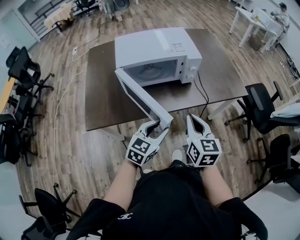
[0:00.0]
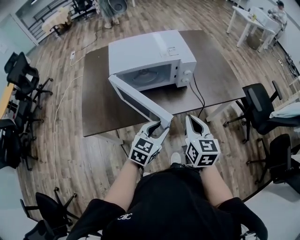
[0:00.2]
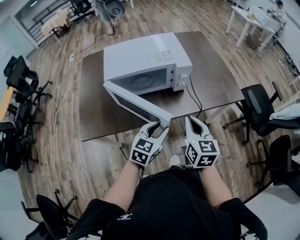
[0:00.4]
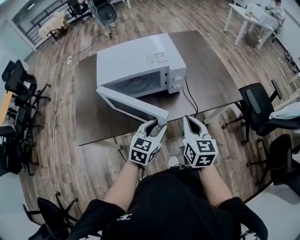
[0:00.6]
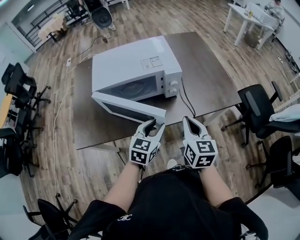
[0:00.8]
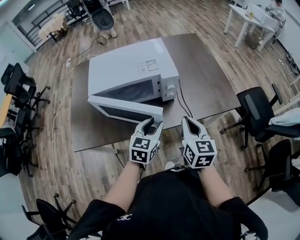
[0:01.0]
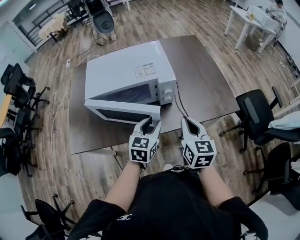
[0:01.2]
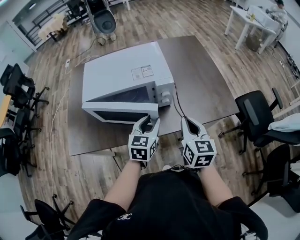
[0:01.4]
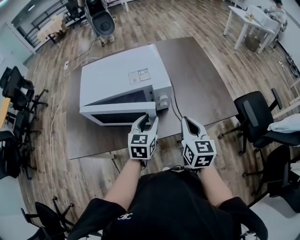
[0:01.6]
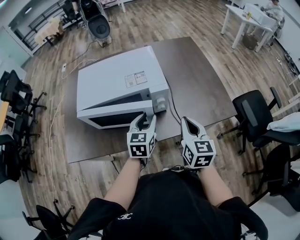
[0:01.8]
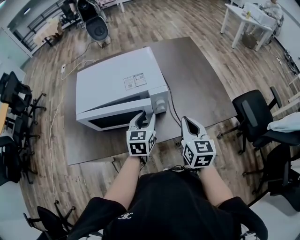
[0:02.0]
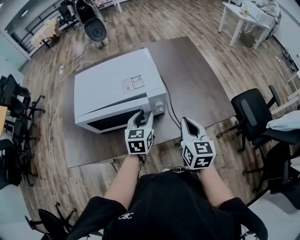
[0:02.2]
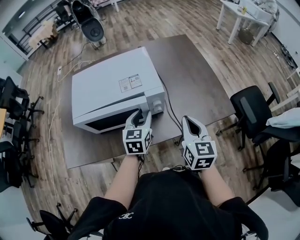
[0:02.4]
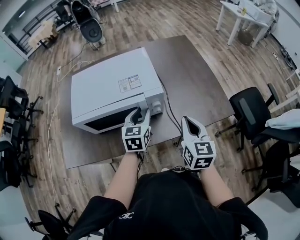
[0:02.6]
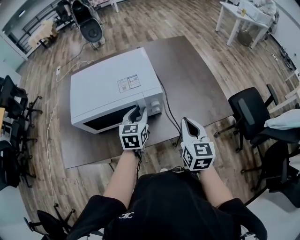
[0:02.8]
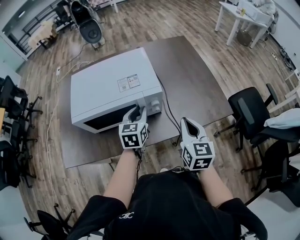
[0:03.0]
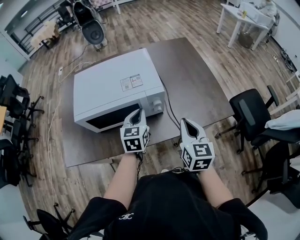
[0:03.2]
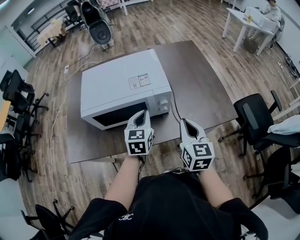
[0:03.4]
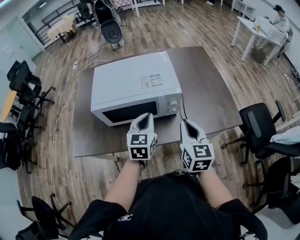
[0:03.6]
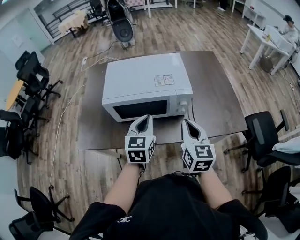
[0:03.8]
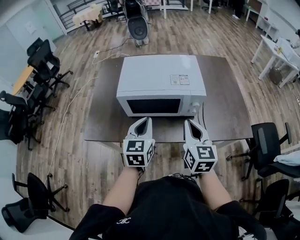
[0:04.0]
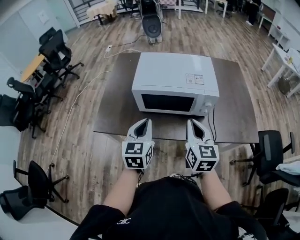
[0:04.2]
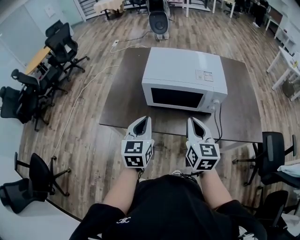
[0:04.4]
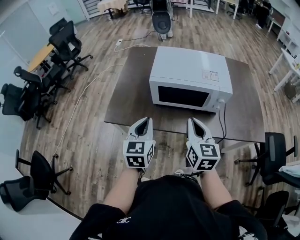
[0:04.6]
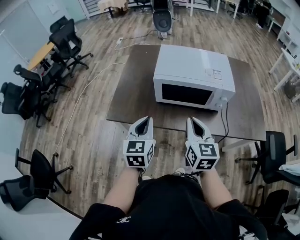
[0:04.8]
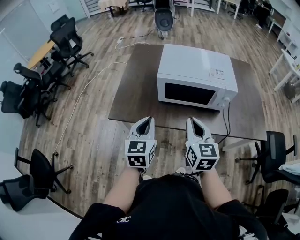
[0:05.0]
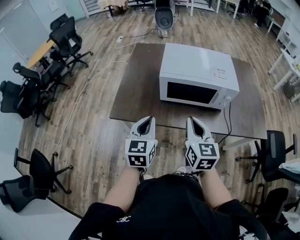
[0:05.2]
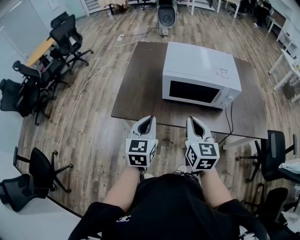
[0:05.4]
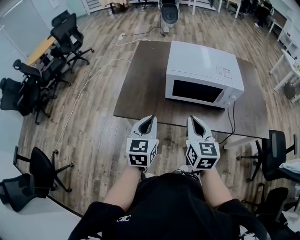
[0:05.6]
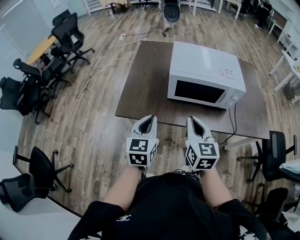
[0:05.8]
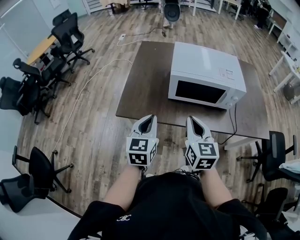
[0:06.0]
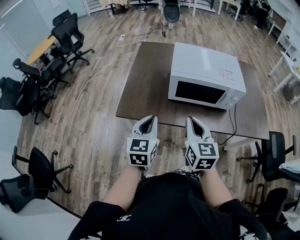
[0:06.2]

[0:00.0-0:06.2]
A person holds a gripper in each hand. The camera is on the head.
0:00.0 to 0:01.6: The left gripper moves forward, roughly 25 cm, and swivels approximately 20 degrees. The right gripper travels forward and to the right by about 25 cm.
0:01.6 to 0:03.2: The left gripper heads forward, covering roughly 5 cm, and closes.
0:03.2 to 0:04.6: The right gripper is displaced to the left by about 25 cm, and turns by about 20 degrees. Meanwhile the left gripper is displaced to the left and backward by approximately 35 cm, and changes its angle by approximately 20 degrees.
0:04.6 to 0:06.2: Both grippers travel together to the left, approximately 10 cm.

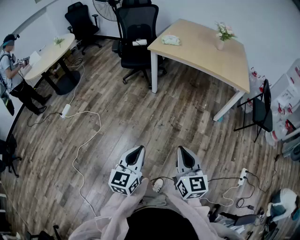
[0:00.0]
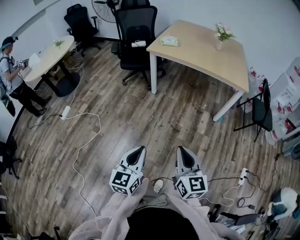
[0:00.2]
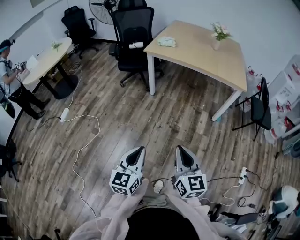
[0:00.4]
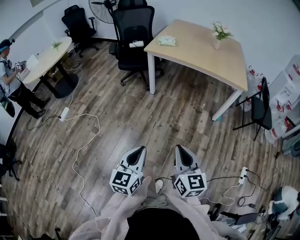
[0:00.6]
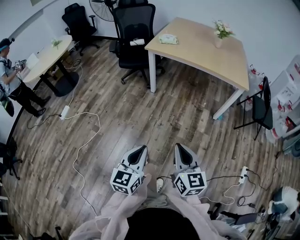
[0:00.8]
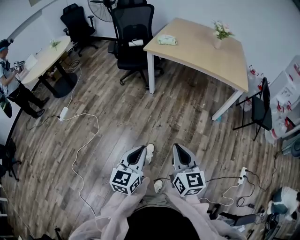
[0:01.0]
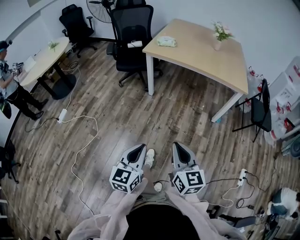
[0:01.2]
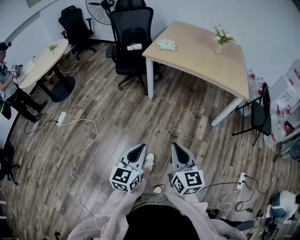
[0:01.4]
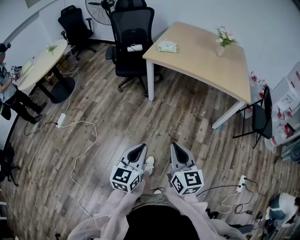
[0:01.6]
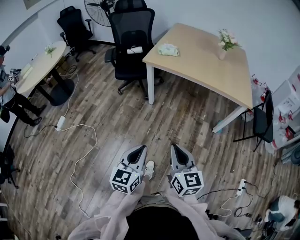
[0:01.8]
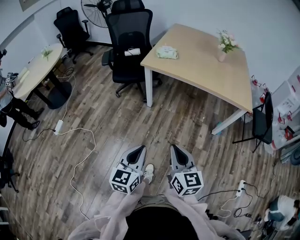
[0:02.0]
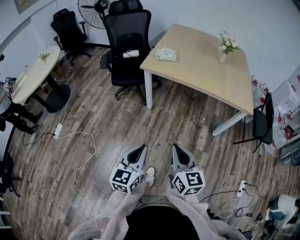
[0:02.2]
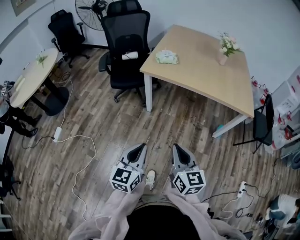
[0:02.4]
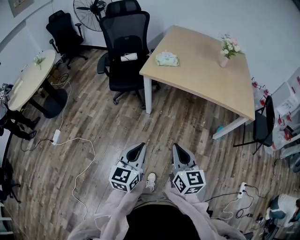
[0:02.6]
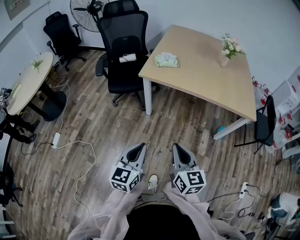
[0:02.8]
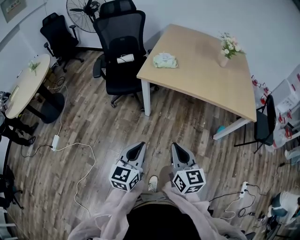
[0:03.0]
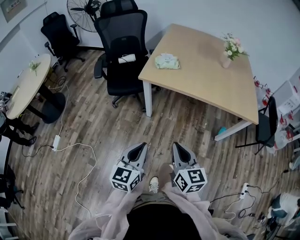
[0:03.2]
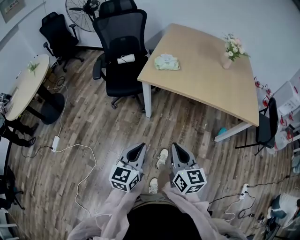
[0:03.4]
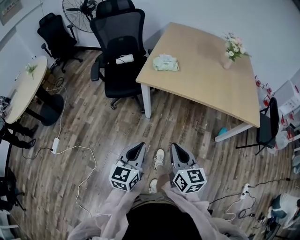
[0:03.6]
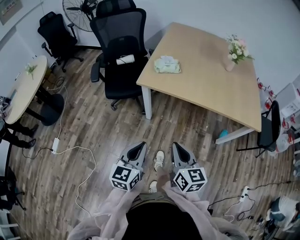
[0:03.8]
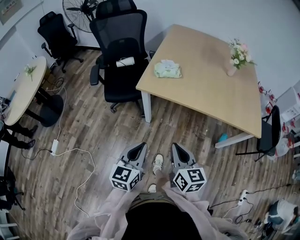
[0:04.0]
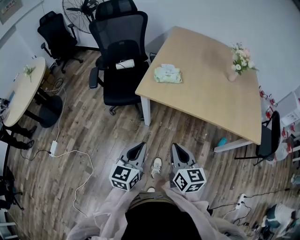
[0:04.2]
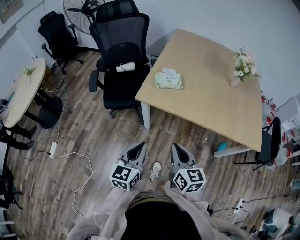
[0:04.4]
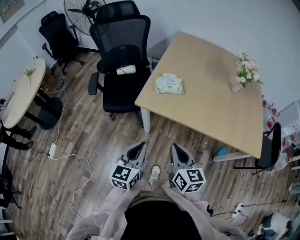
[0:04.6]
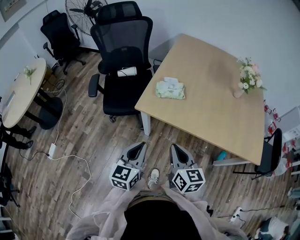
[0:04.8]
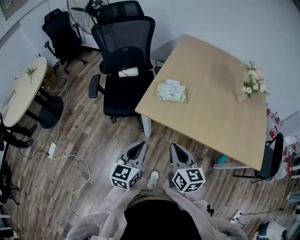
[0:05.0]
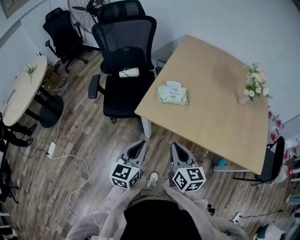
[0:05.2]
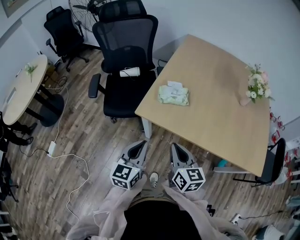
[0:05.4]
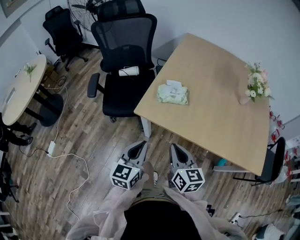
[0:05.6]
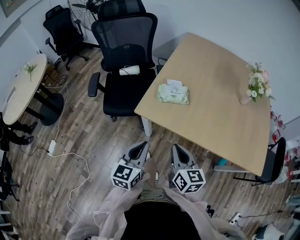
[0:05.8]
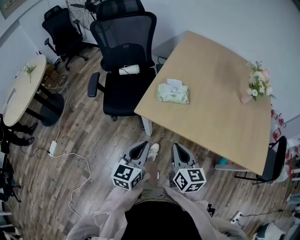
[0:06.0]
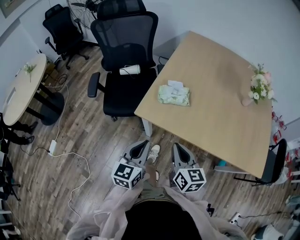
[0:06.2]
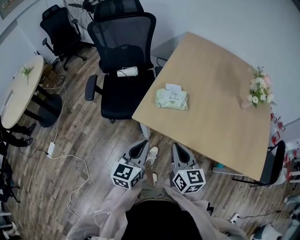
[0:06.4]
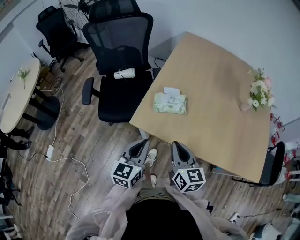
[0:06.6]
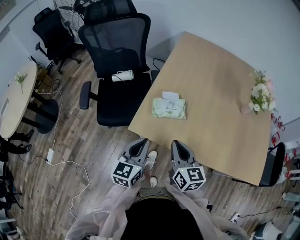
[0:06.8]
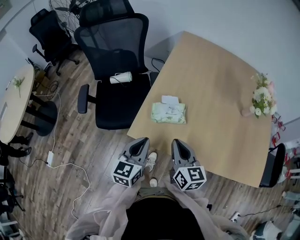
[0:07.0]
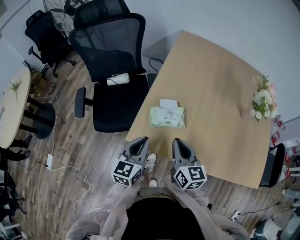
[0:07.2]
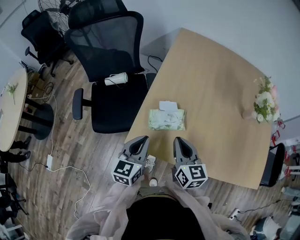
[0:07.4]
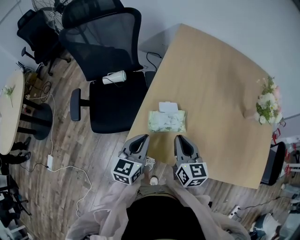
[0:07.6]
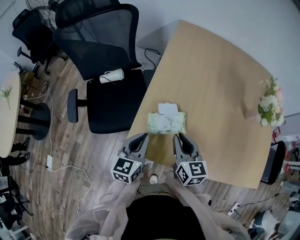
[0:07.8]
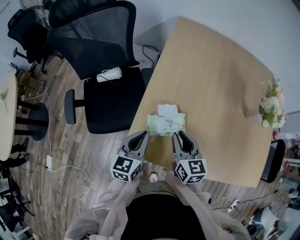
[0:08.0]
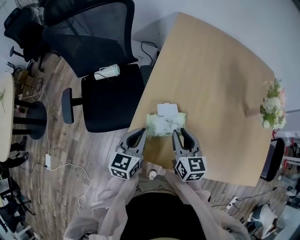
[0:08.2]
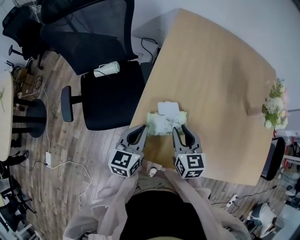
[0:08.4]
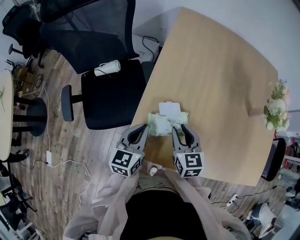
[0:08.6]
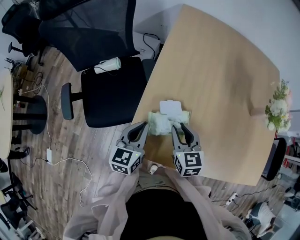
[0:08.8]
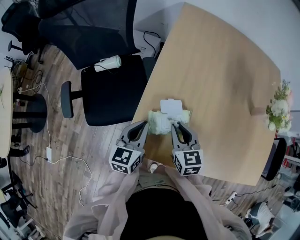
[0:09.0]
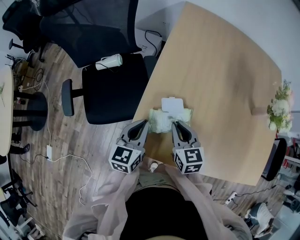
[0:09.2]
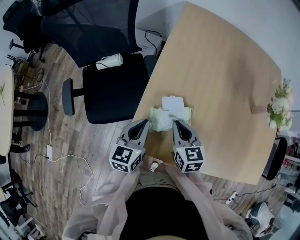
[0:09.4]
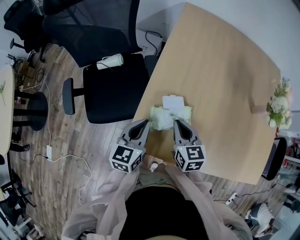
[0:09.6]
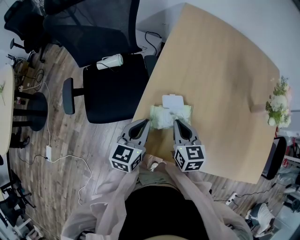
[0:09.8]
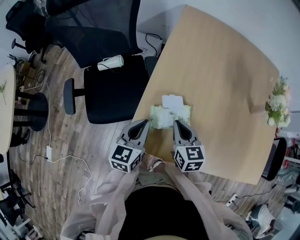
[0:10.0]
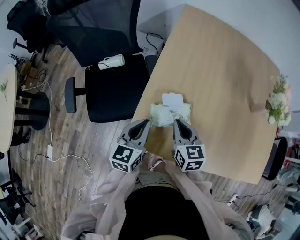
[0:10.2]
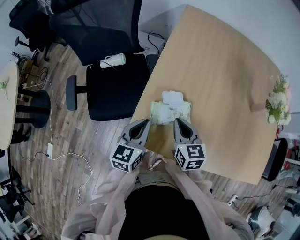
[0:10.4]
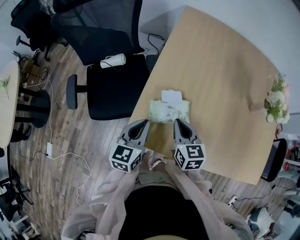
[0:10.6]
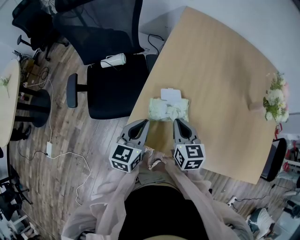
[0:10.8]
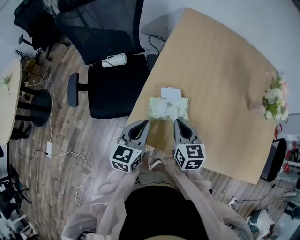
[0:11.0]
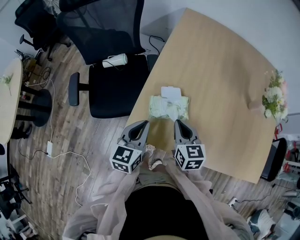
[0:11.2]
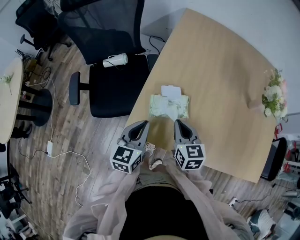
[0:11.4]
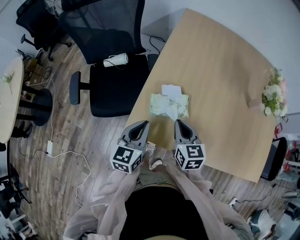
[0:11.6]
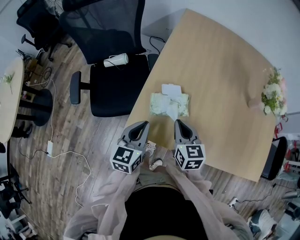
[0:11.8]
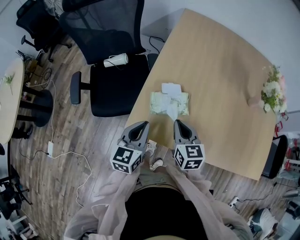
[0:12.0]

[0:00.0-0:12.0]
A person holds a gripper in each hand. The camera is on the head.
0:00.0 to 0:01.6: Both grippers move forward, some 15 cm.
0:01.6 to 0:03.0: Both grippers move forward, some 25 cm.
0:03.0 to 0:04.4: The two grippers go some 20 cm forward.
0:04.4 to 0:06.0: Both grippers travel together forward, about 15 cm.
0:06.0 to 0:07.6: Both grippers travel together forward, approximately 25 cm.
0:07.6 to 0:09.0: The left gripper is displaced forward by approximately 10 cm. Meanwhile the right gripper goes approximately 10 cm forward and downward.
0:09.0 to 0:10.4: The grippers make only small movements.
0:10.4 to 0:12.0: The grippers both shift backward by about 5 cm.

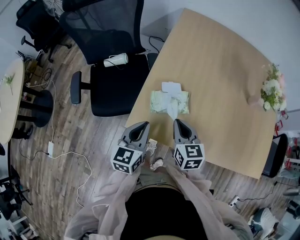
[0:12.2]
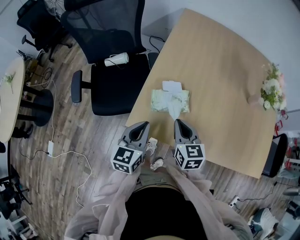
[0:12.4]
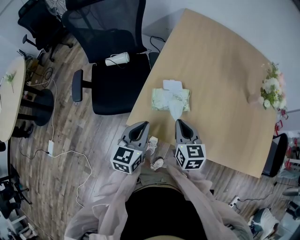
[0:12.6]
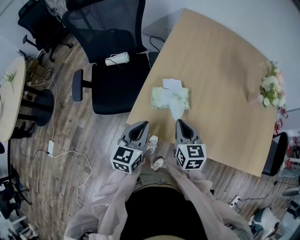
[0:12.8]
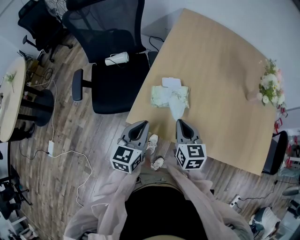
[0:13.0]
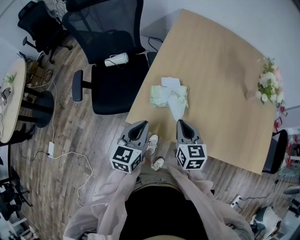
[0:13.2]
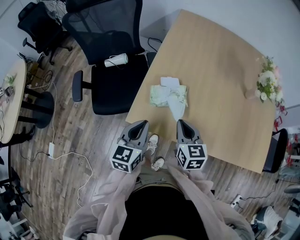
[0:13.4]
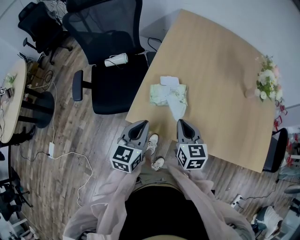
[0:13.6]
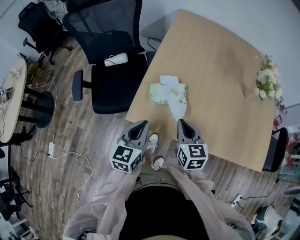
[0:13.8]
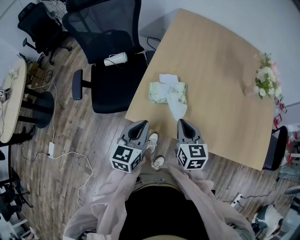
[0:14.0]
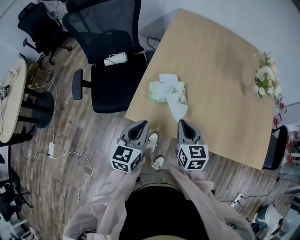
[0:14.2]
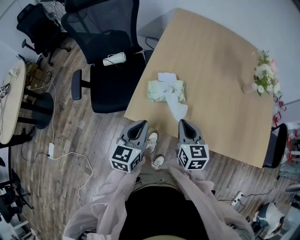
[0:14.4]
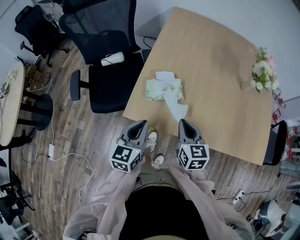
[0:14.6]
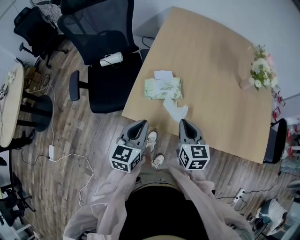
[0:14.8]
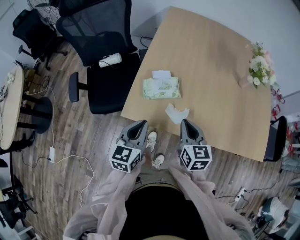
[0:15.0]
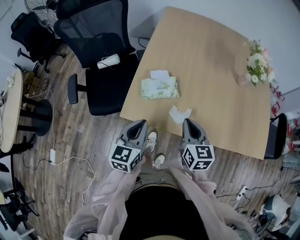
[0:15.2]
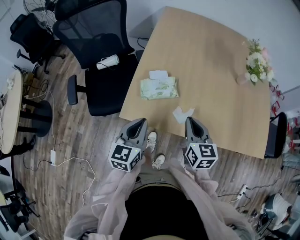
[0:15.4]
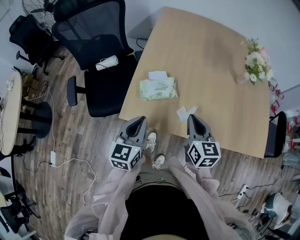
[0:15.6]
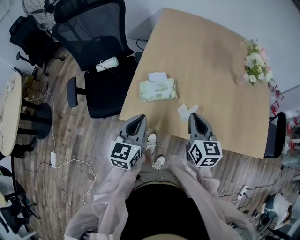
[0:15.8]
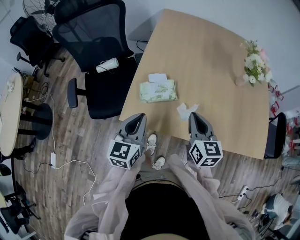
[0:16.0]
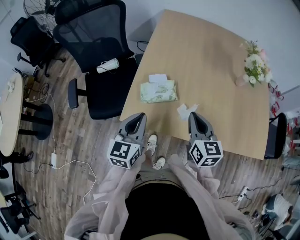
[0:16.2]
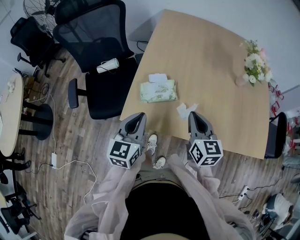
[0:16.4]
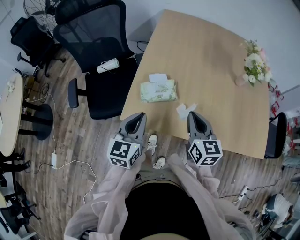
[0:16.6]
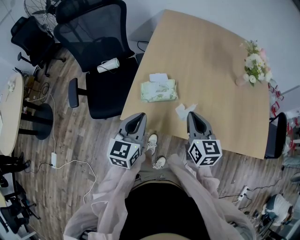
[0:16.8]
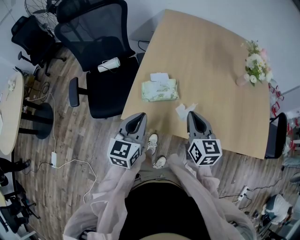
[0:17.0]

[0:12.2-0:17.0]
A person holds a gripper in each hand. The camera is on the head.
0:12.2 to 0:13.8: The right gripper shifts by roughly 5 cm.
0:13.8 to 0:15.4: The right gripper shifts about 5 cm to the right.
0:15.4 to 0:17.0: The grippers make only small movements.

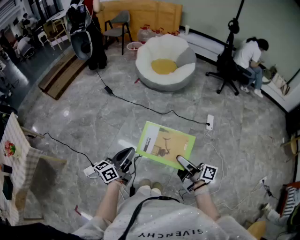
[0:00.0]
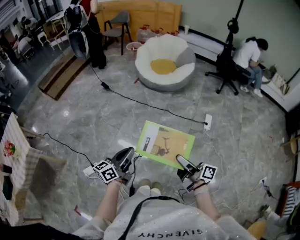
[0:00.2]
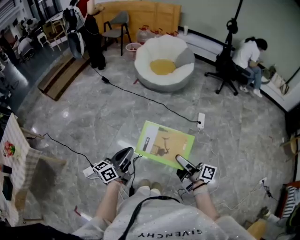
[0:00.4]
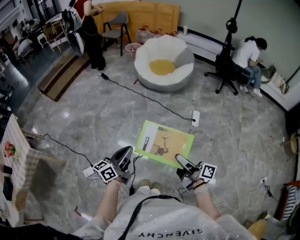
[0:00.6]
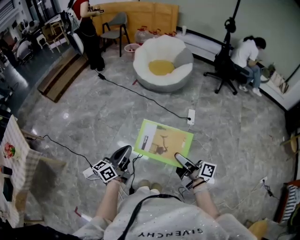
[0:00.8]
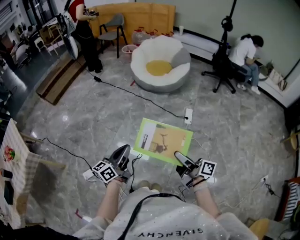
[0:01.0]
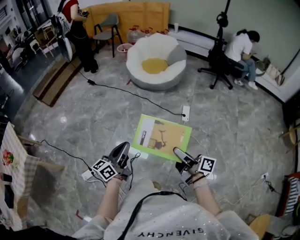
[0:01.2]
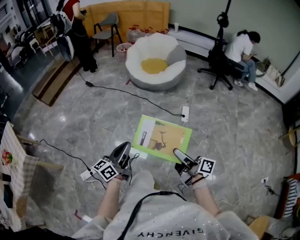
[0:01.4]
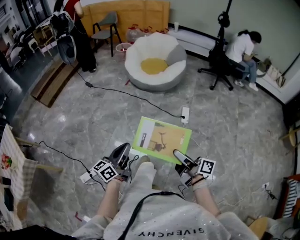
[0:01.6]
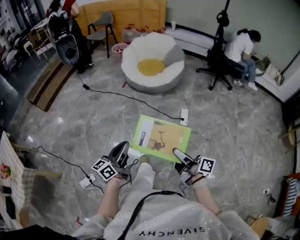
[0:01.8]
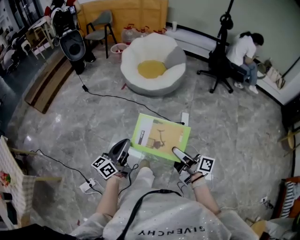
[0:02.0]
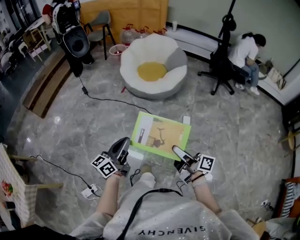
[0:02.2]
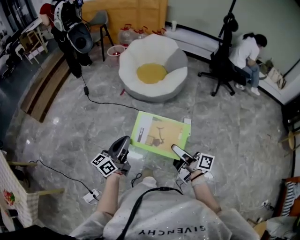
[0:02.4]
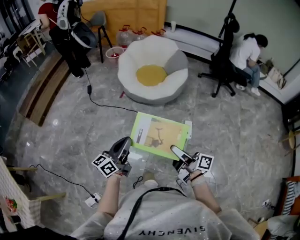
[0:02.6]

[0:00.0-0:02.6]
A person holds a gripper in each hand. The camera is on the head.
0:00.0 to 0:01.2: The grippers stay close to where they were, moving slightly.
0:01.2 to 0:02.6: The two grippers go some 35 cm forward.
